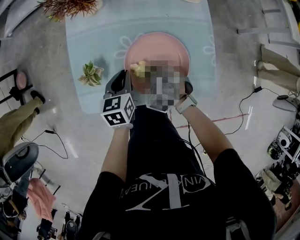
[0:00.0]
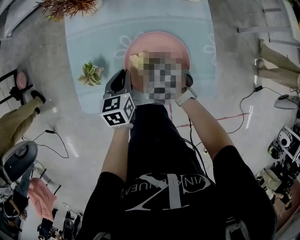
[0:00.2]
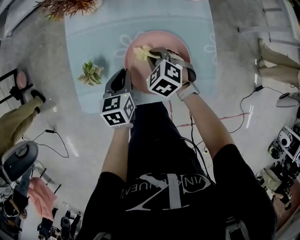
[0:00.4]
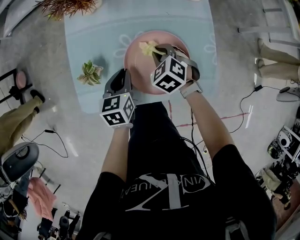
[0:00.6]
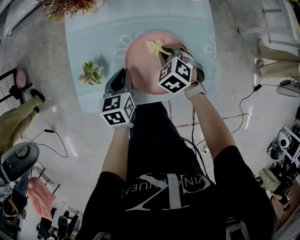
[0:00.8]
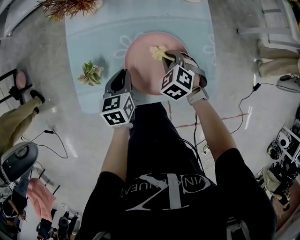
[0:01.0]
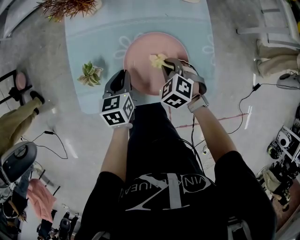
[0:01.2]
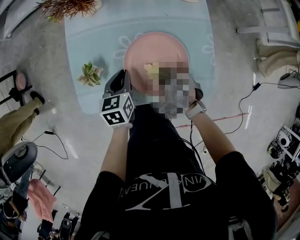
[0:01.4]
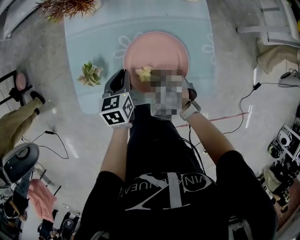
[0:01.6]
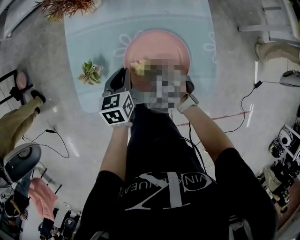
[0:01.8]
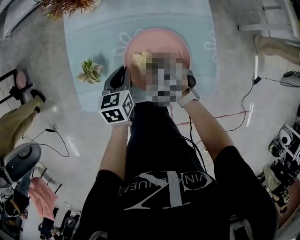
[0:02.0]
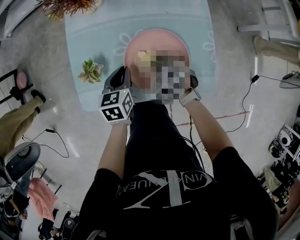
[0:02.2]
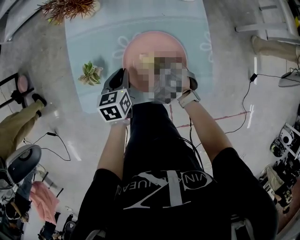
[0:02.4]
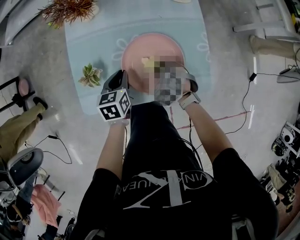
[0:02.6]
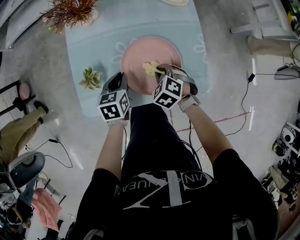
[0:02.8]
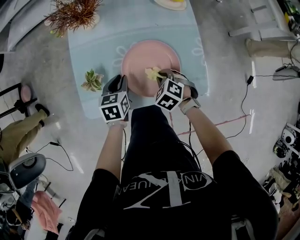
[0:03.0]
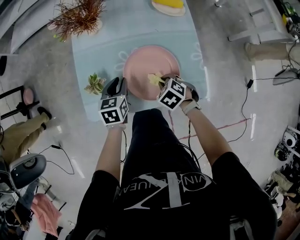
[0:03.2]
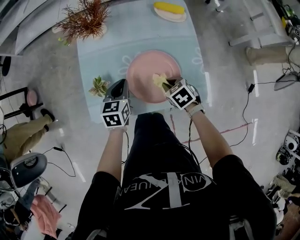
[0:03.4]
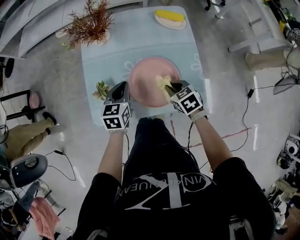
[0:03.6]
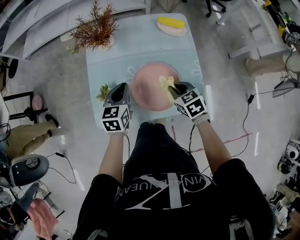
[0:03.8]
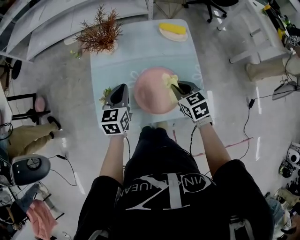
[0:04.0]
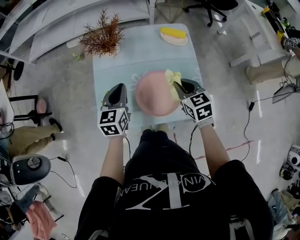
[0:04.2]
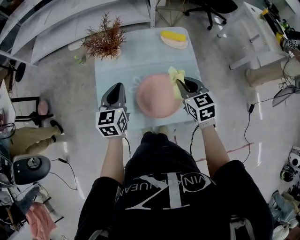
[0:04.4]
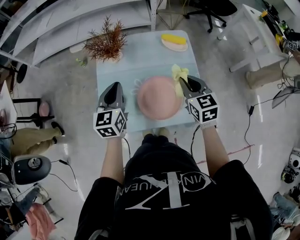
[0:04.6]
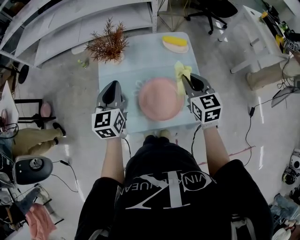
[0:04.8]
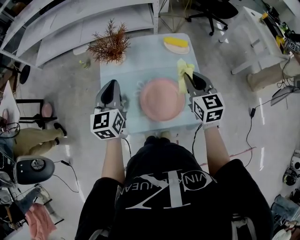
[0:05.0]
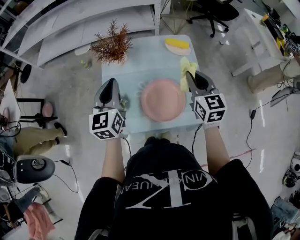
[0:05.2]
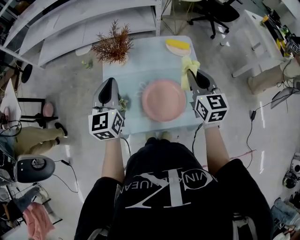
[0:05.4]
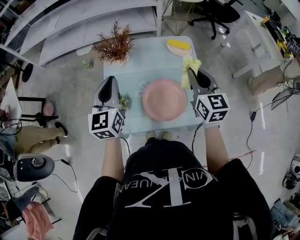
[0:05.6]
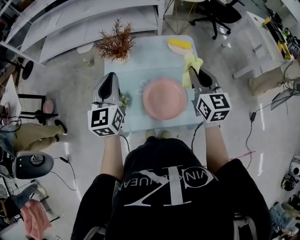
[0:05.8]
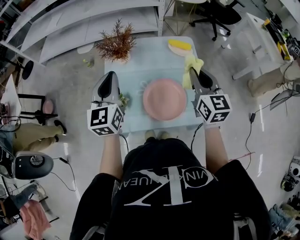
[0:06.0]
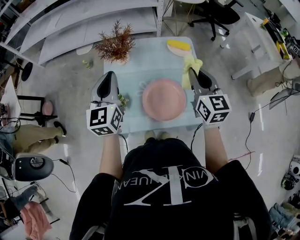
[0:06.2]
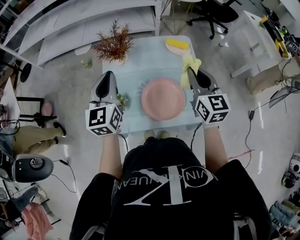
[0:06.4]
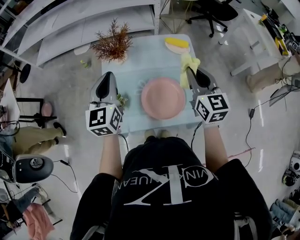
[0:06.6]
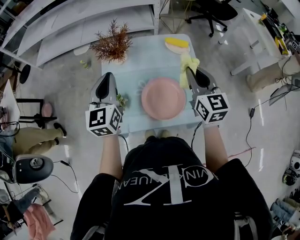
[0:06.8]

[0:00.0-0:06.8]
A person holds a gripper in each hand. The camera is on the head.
0:00.0 to 0:01.4: The right gripper travels to the right by about 5 cm, and moves approximately 5 cm forward and comes back.
0:01.4 to 0:02.8: The grippers stay close to where they were, moving slightly.
0:02.8 to 0:04.0: The two grippers go roughly 15 cm upward. The left gripper swivels about 20 degrees. Meanwhile the right gripper swivels roughly 40 degrees.
0:04.0 to 0:05.4: The grippers both shift upward by roughly 15 cm. The left gripper rotates about 20 degrees; the right gripper changes its angle by approximately 30 degrees.
0:05.4 to 0:06.8: The grippers move only a little.

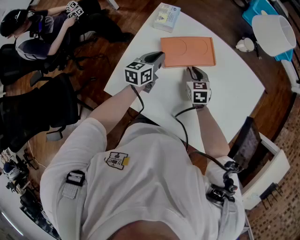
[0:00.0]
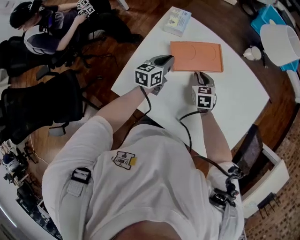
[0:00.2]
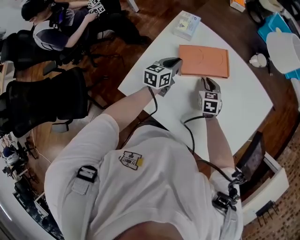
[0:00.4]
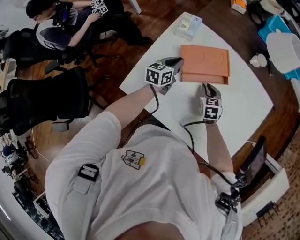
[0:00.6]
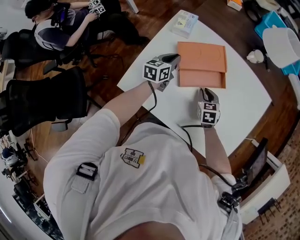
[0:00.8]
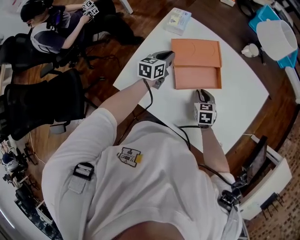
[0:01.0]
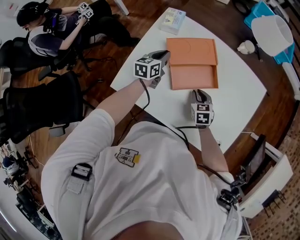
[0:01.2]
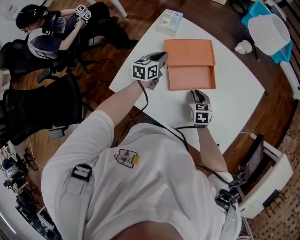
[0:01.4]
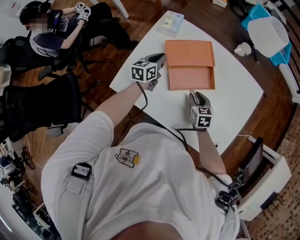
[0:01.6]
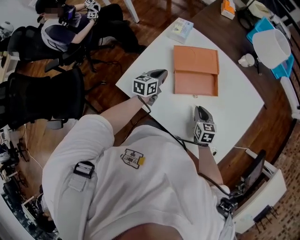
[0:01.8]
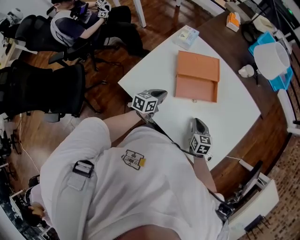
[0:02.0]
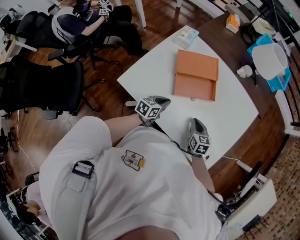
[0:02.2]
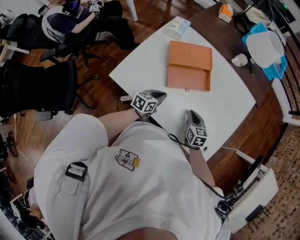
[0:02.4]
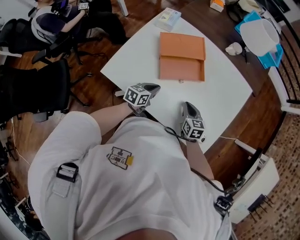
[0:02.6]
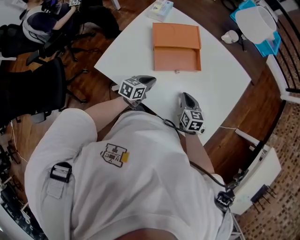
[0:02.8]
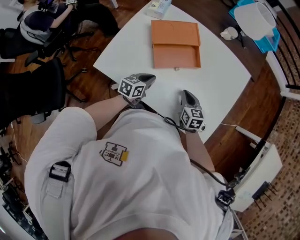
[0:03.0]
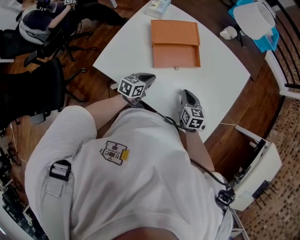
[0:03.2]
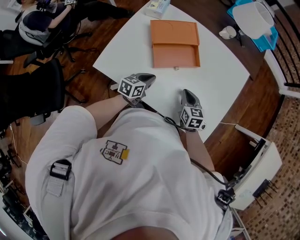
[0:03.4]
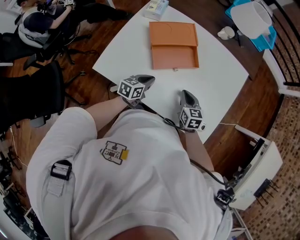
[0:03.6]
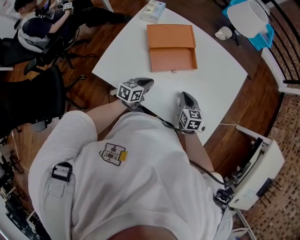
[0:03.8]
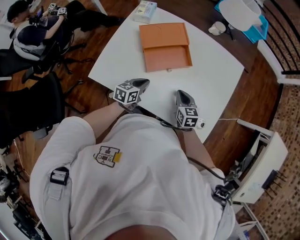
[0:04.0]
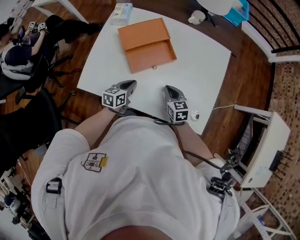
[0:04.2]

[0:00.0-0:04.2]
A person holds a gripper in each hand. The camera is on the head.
0:00.0 to 0:01.4: The right gripper shifts roughly 15 cm backward and to the right.
0:01.4 to 0:02.8: The left gripper moves backward and to the right, roughly 20 cm. The right gripper goes roughly 10 cm backward and to the right.
0:02.8 to 0:04.2: The two grippers keep their place.

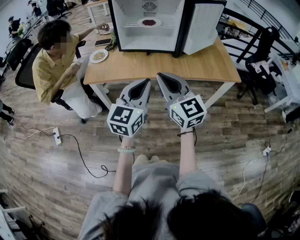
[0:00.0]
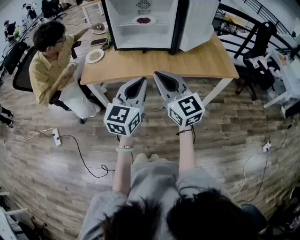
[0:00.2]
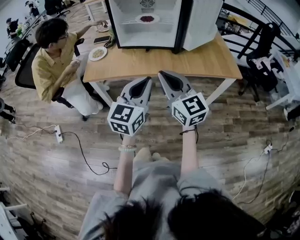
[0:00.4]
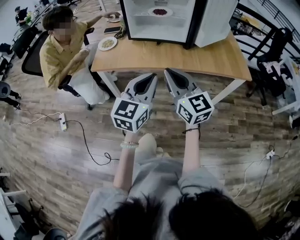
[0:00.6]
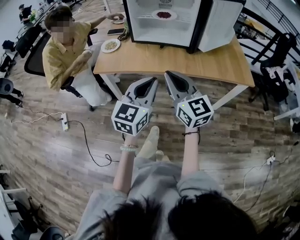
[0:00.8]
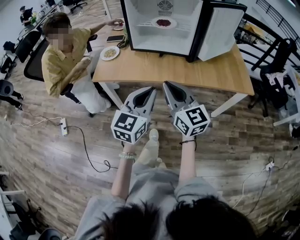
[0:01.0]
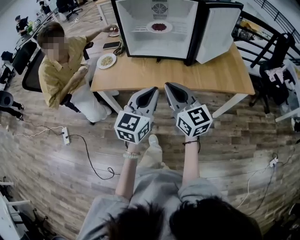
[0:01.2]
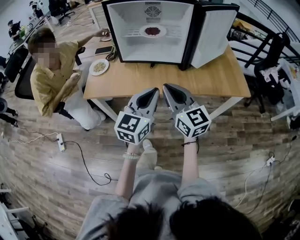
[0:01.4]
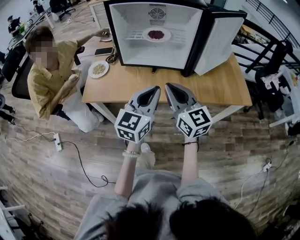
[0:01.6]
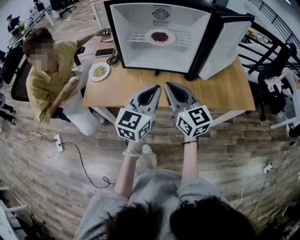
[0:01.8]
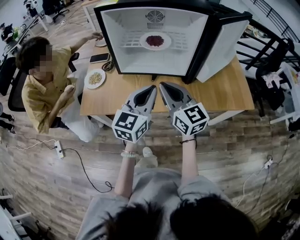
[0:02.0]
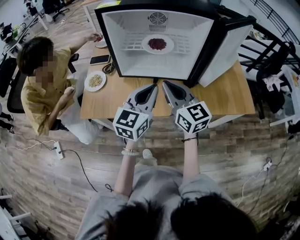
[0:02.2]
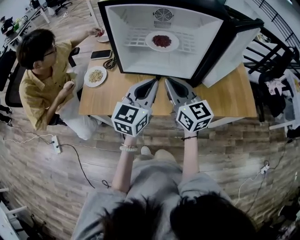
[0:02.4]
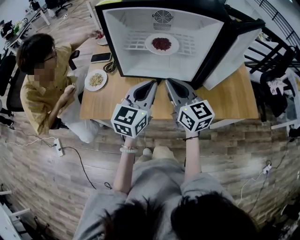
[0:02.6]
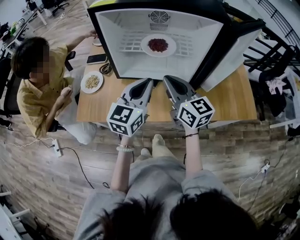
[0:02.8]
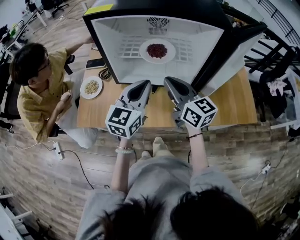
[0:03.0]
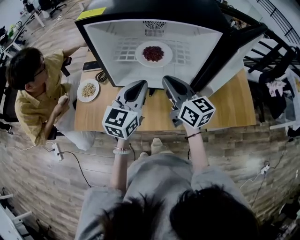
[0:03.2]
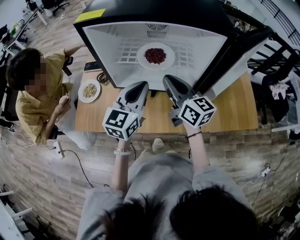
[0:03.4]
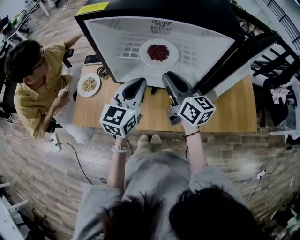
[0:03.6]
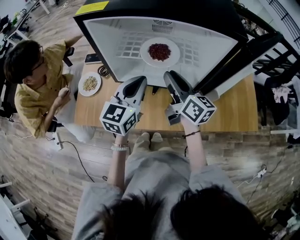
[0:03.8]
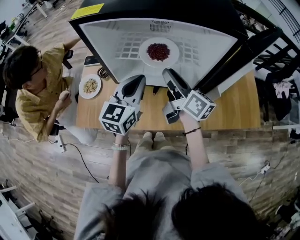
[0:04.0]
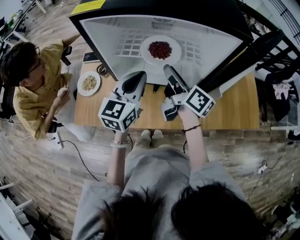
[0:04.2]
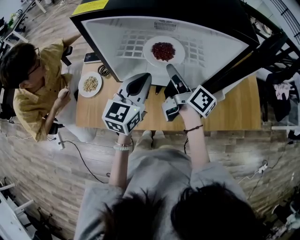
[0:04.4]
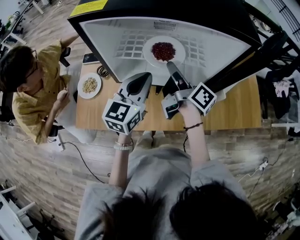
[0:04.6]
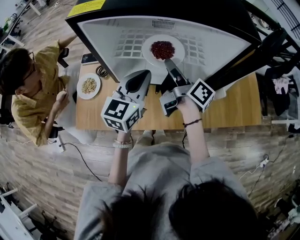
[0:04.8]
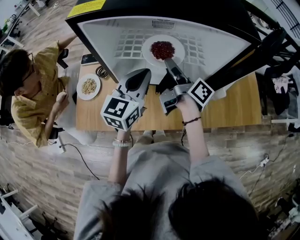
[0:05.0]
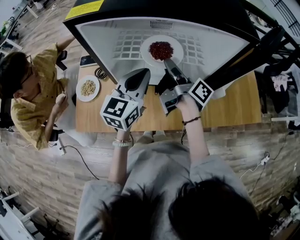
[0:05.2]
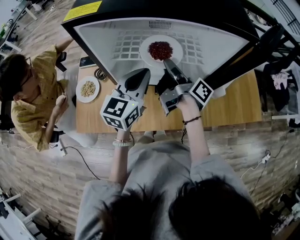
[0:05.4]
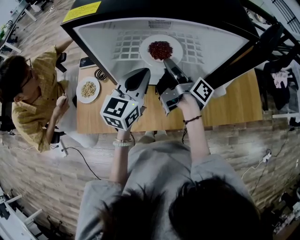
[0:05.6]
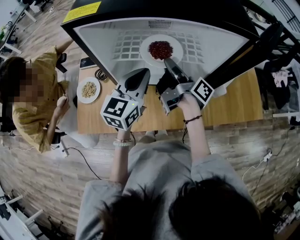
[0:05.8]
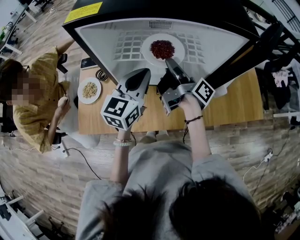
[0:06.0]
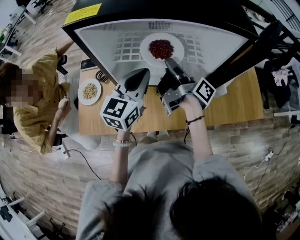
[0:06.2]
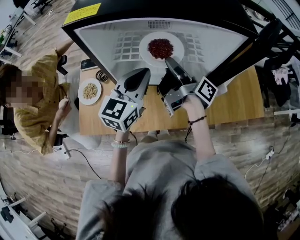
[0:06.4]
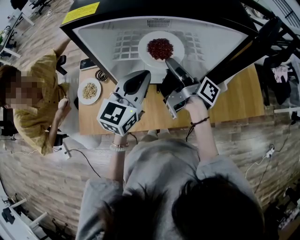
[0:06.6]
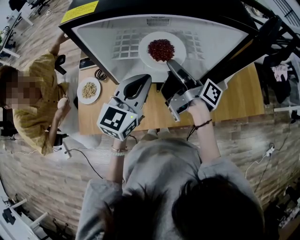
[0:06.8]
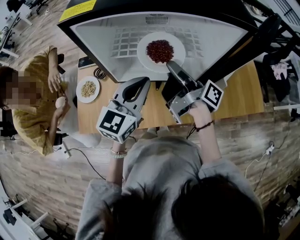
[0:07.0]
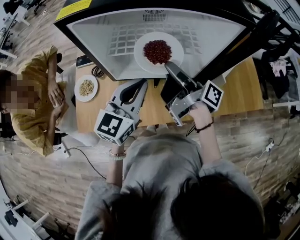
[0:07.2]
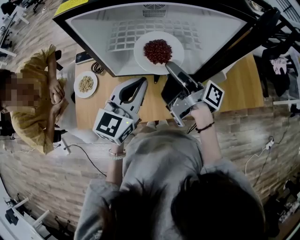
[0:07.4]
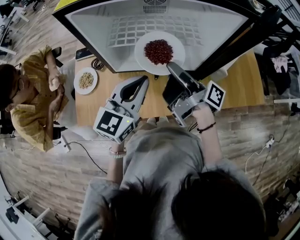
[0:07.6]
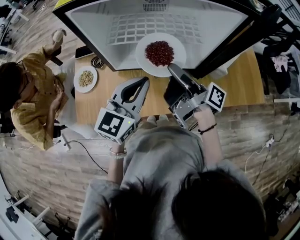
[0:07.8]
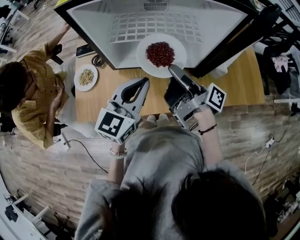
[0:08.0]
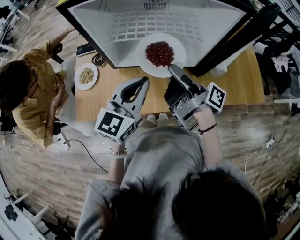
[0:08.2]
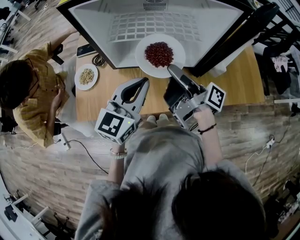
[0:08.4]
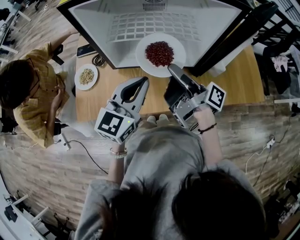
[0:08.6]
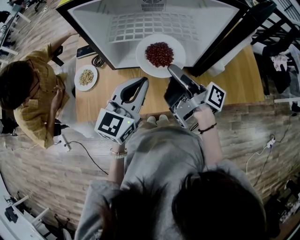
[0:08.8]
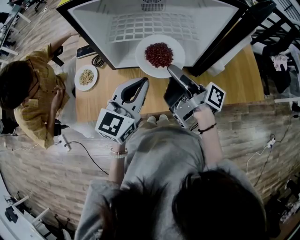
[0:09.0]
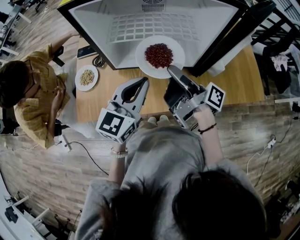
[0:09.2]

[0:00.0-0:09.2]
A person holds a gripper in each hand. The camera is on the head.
0:00.0 to 0:01.6: Both grippers travel together forward, about 15 cm.
0:01.6 to 0:03.0: Both grippers travel together forward, roughly 20 cm.
0:03.0 to 0:04.6: The left gripper shifts roughly 5 cm forward. The right gripper is displaced forward by approximately 10 cm, rotates around the line of its fingers by approximately 50 degrees, clockwise from behind, and opens its fingers.
0:04.6 to 0:06.2: The right gripper rotates roughly 20 degrees.
0:06.2 to 0:07.6: Both grippers travel together backward, about 10 cm.
0:07.6 to 0:09.2: The grippers move only a little.

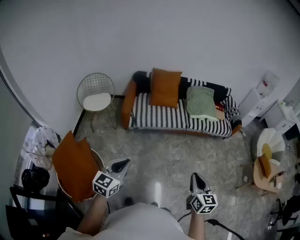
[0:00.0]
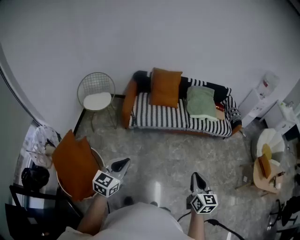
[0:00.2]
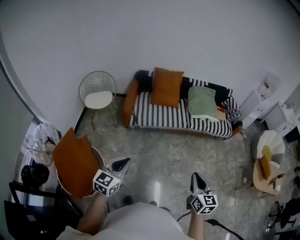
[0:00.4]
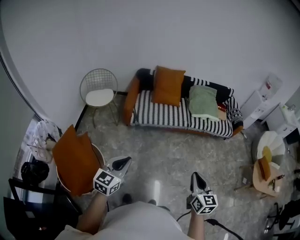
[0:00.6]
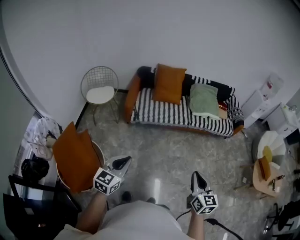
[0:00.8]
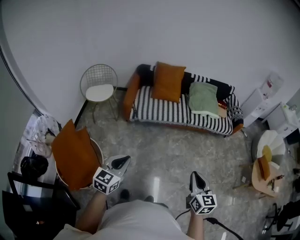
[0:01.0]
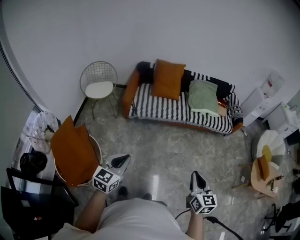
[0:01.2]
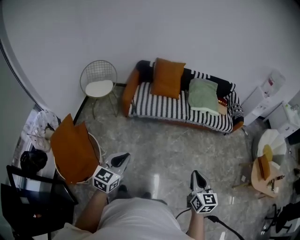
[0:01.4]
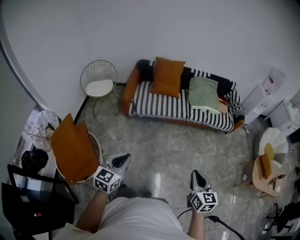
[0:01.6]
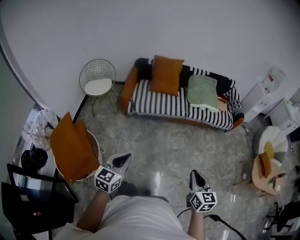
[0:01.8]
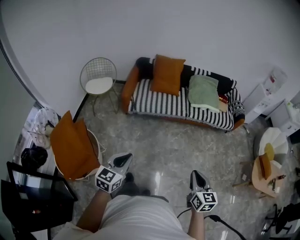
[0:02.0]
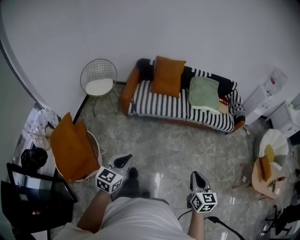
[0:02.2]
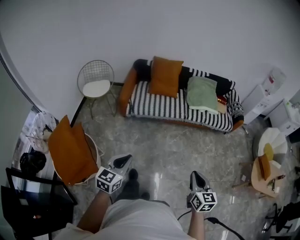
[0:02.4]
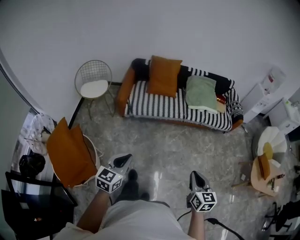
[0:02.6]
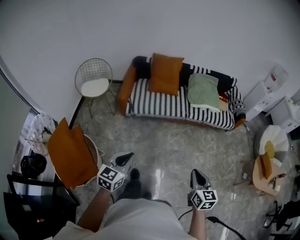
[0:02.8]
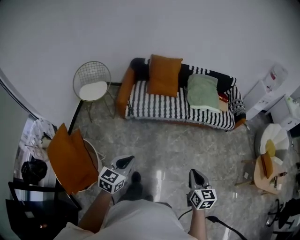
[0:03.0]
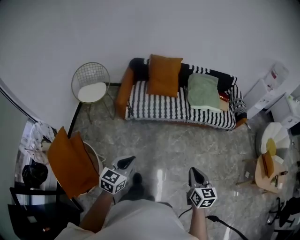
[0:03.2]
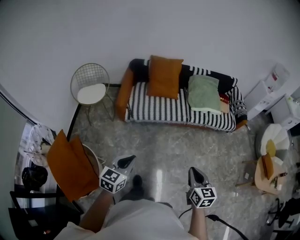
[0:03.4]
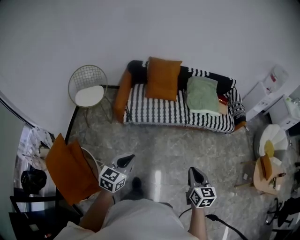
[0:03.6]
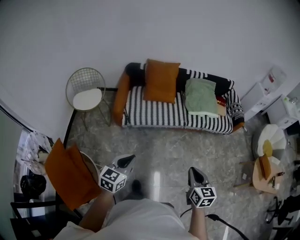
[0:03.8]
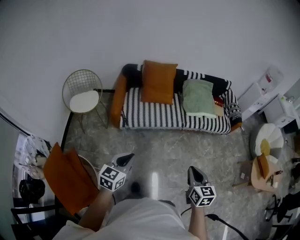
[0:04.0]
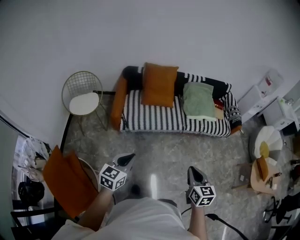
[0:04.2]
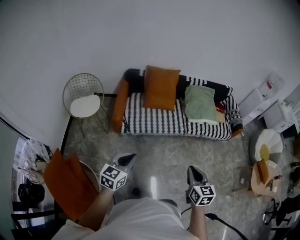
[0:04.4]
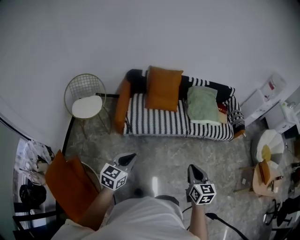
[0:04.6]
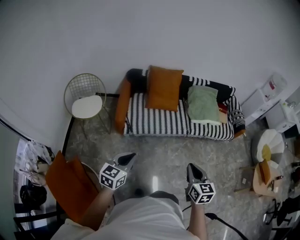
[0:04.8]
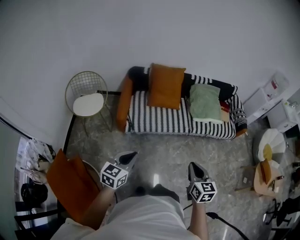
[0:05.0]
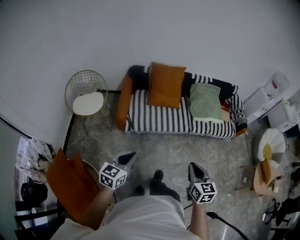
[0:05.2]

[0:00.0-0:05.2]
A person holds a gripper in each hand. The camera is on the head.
0:00.0 to 0:01.8: The two grippers go roughly 10 cm to the right.
0:01.8 to 0:03.4: The right gripper shifts about 20 cm forward and to the left, while the left gripper is displaced forward by approximately 20 cm.
0:03.4 to 0:05.2: Both grippers move forward and to the left, approximately 20 cm.
